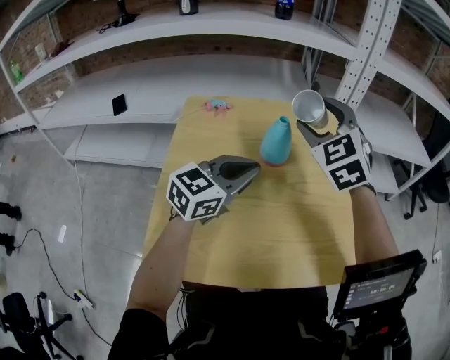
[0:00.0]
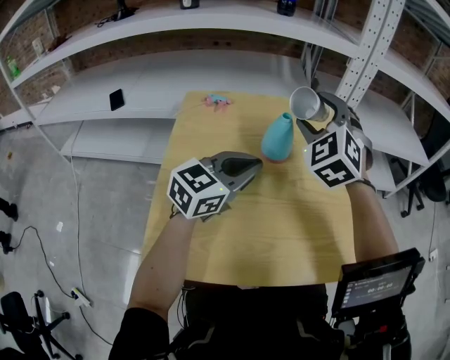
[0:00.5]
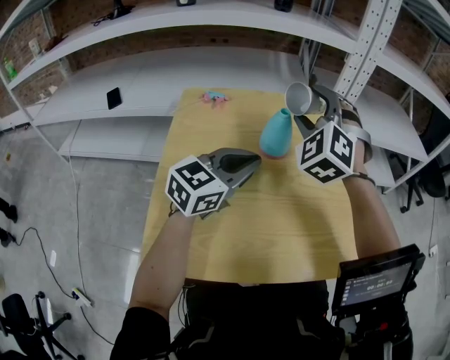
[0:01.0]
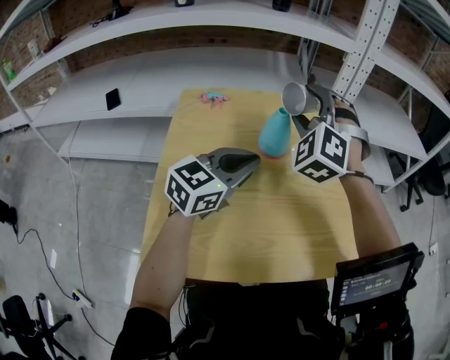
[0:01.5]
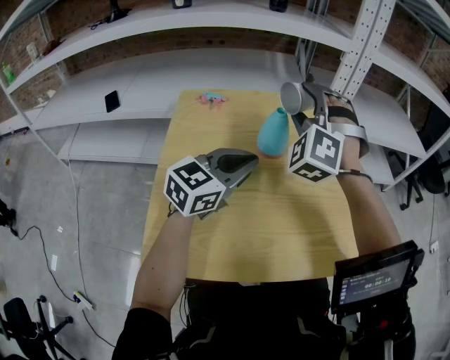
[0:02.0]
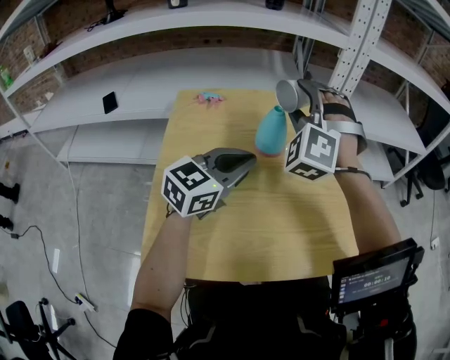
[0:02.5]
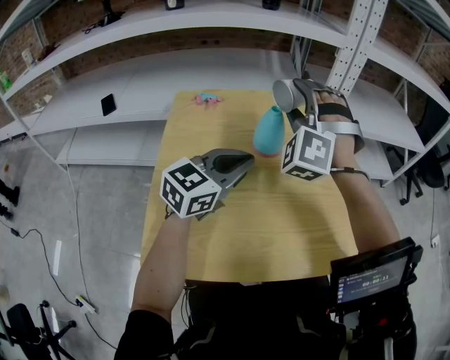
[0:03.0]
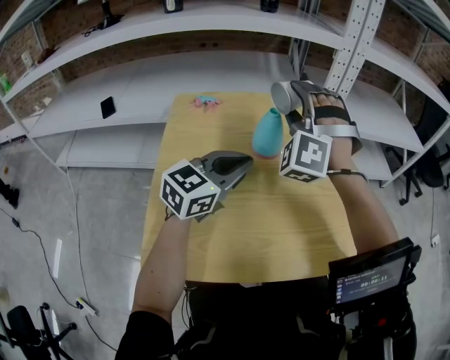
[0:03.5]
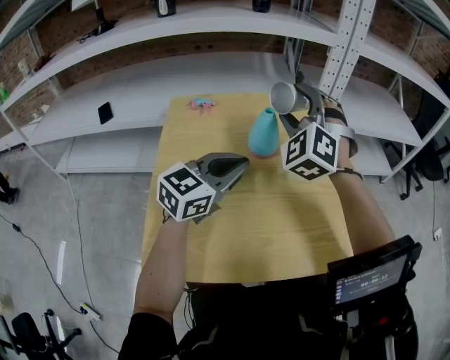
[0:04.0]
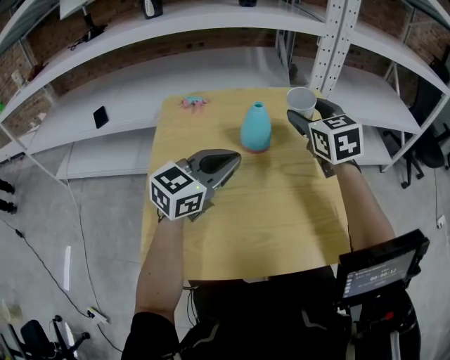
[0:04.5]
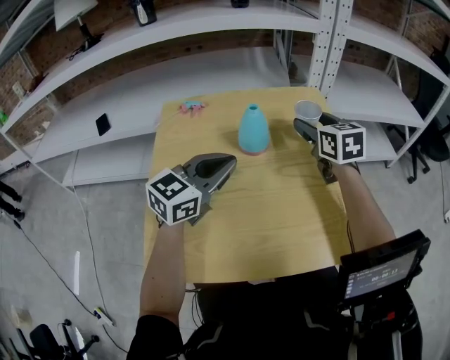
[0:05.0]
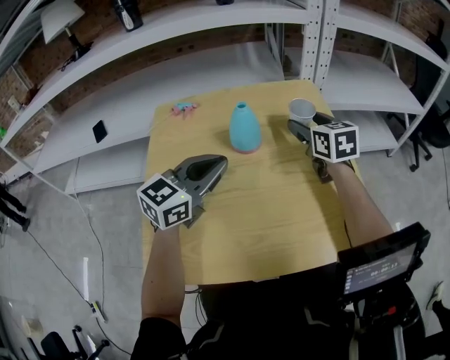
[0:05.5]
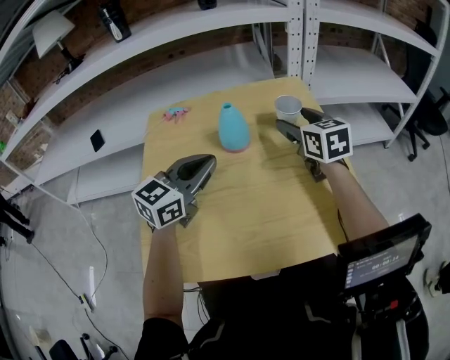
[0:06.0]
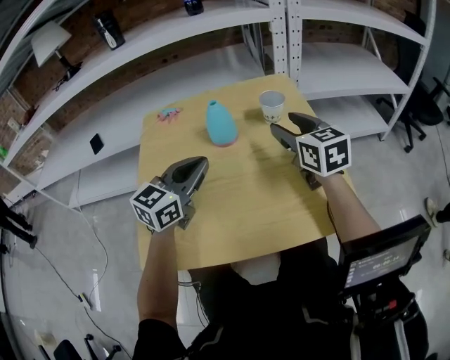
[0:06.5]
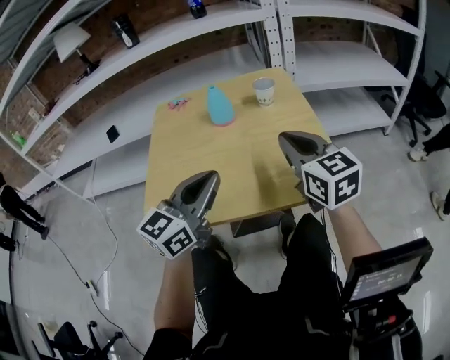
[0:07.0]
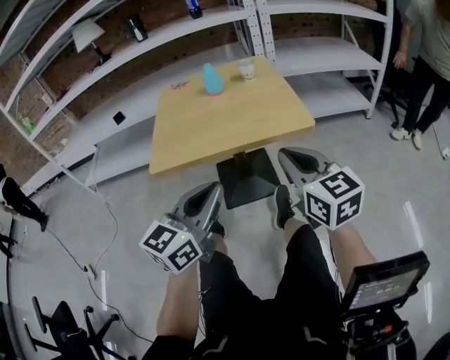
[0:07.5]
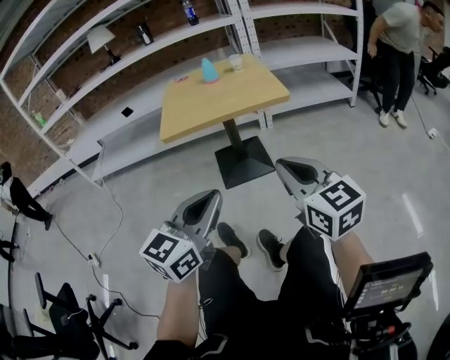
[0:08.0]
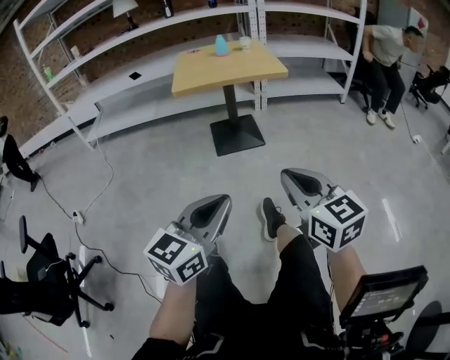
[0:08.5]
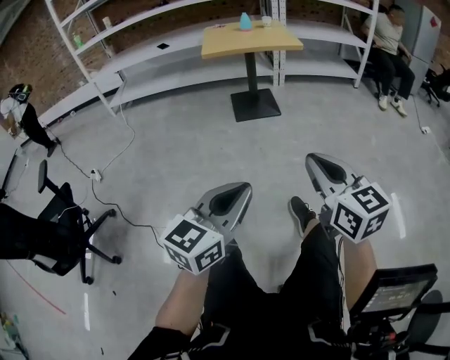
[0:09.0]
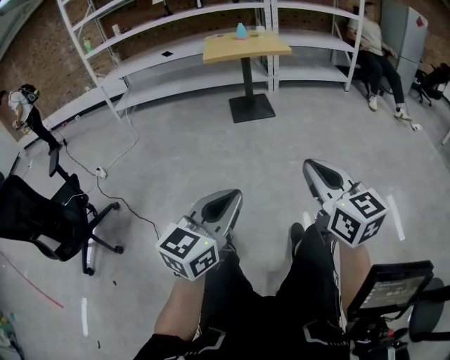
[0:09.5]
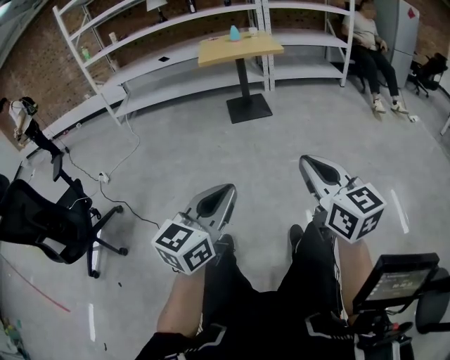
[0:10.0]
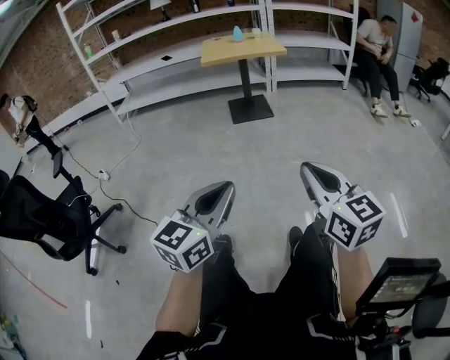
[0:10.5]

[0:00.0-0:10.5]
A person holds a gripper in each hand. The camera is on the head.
0:00.0 to 0:02.0: The right gripper rotates roughly 40 degrees.
0:02.0 to 0:04.0: There are only small adjustments of the grippers.
0:04.0 to 0:06.5: The right gripper goes approximately 15 cm to the right and downward, and rotates around the line of its fingers by about 70 degrees, clockwise from behind.
0:06.5 to 0:08.5: Both grippers are carried backward, some 90 cm. The right gripper closes.
0:08.5 to 0:10.5: The two grippers go approximately 40 cm backward.

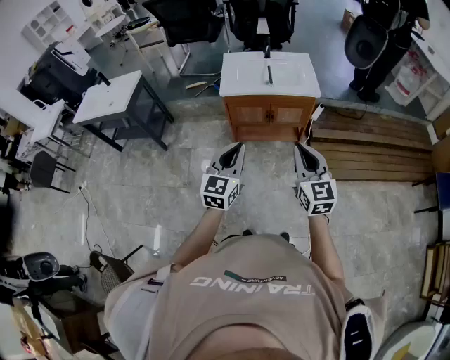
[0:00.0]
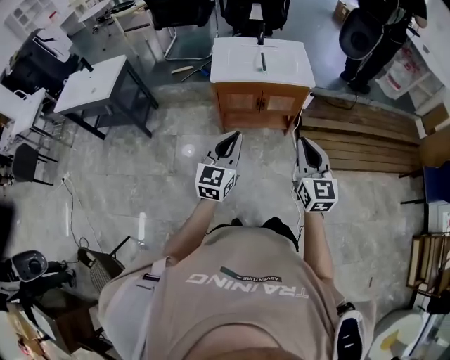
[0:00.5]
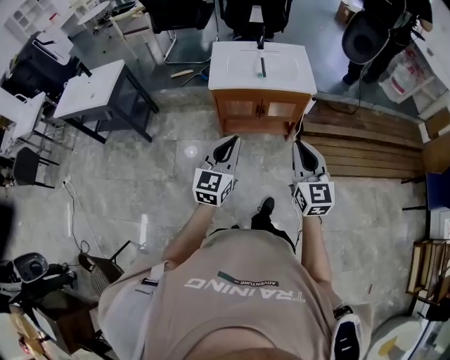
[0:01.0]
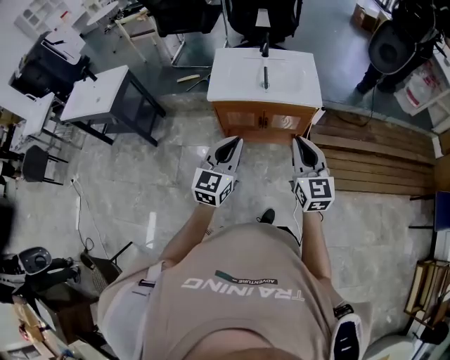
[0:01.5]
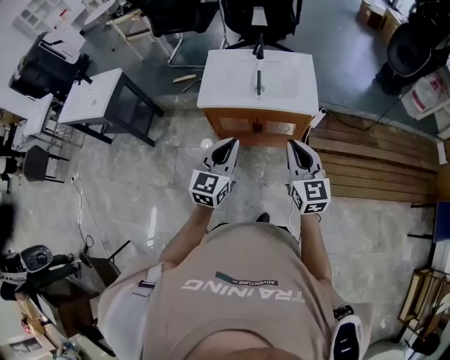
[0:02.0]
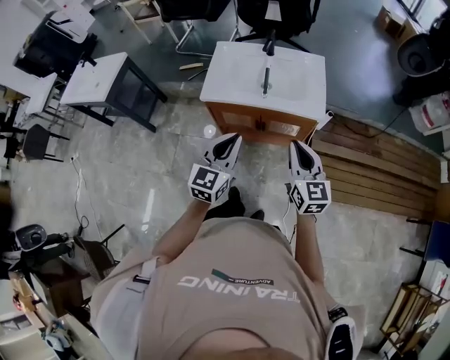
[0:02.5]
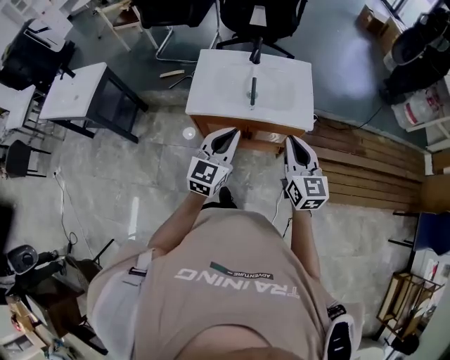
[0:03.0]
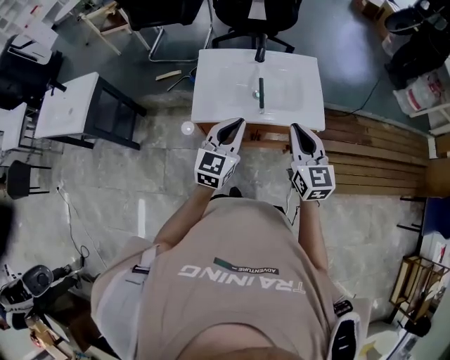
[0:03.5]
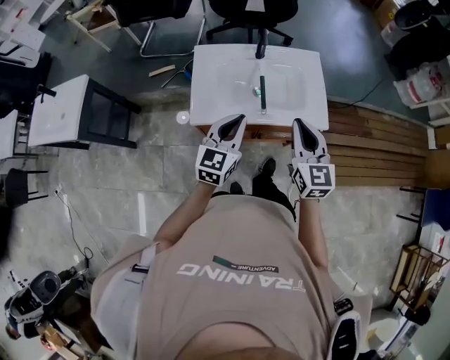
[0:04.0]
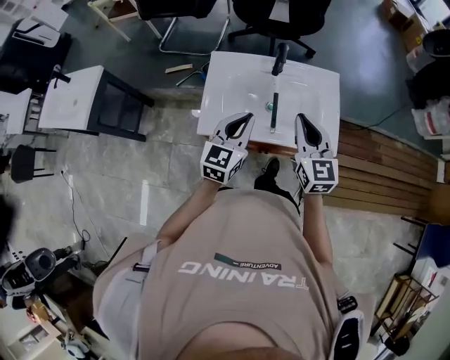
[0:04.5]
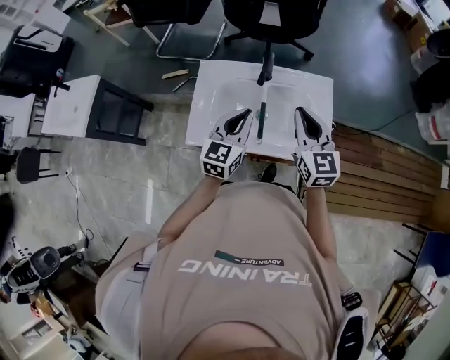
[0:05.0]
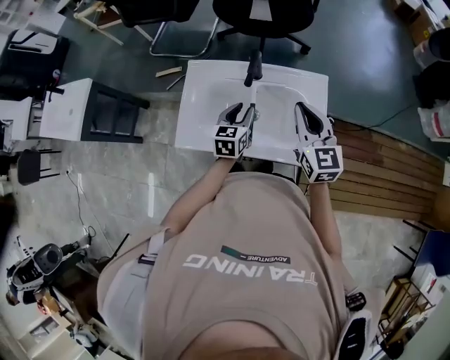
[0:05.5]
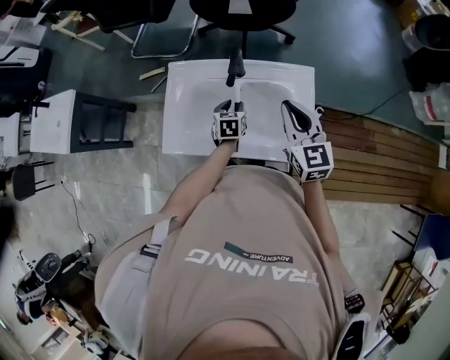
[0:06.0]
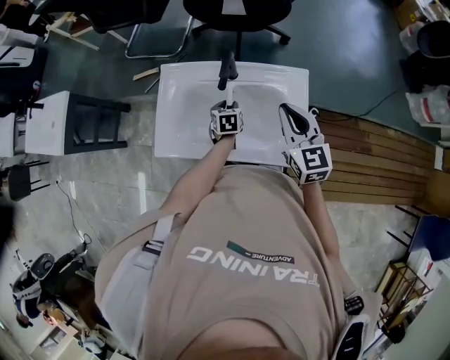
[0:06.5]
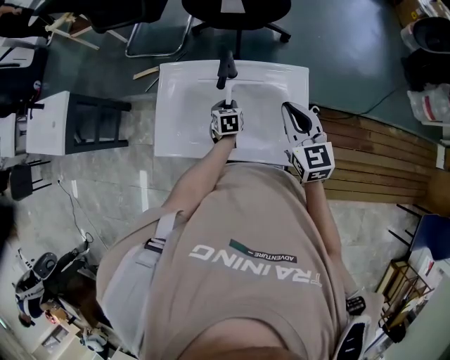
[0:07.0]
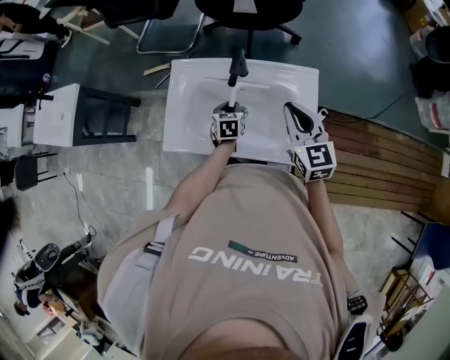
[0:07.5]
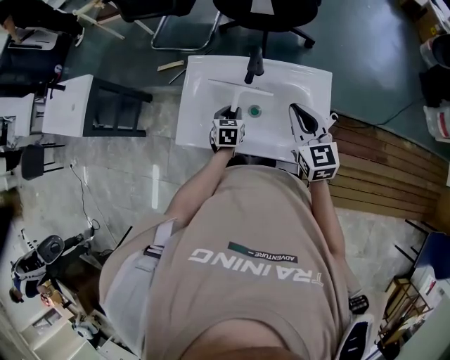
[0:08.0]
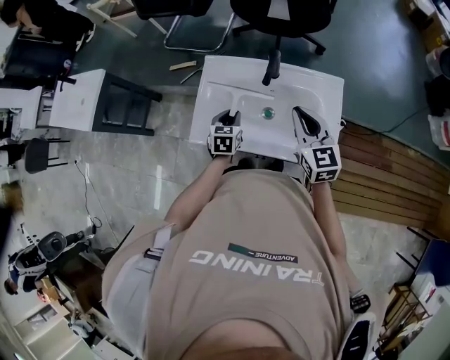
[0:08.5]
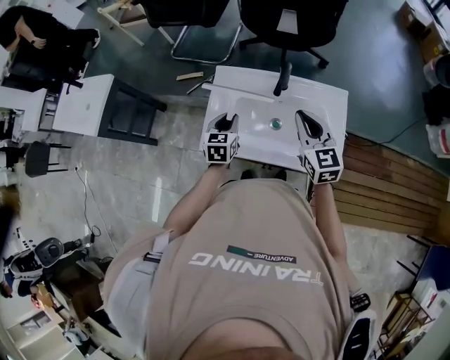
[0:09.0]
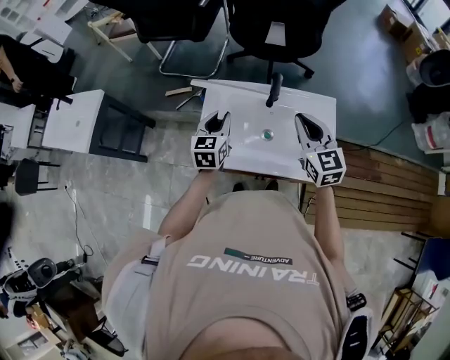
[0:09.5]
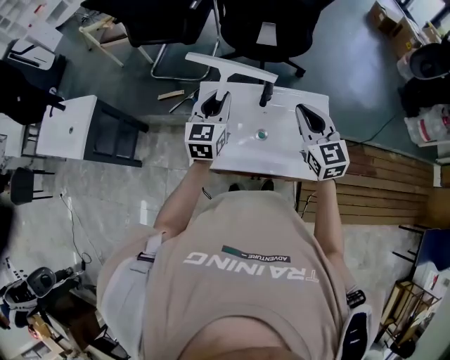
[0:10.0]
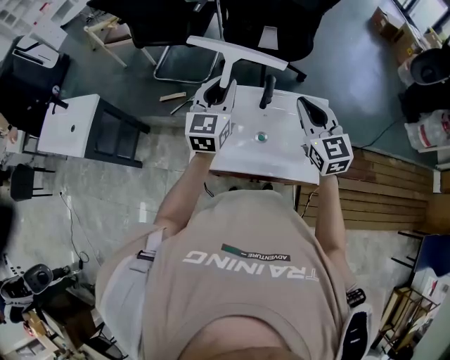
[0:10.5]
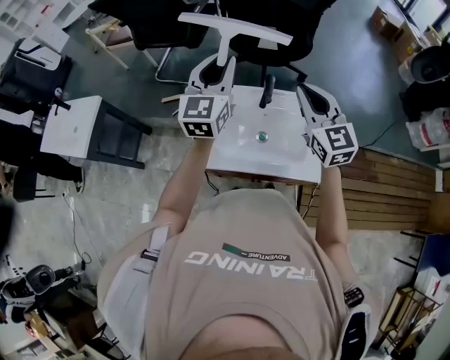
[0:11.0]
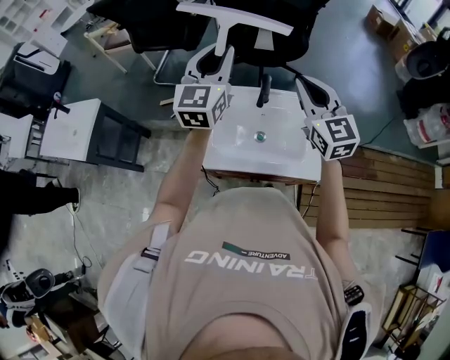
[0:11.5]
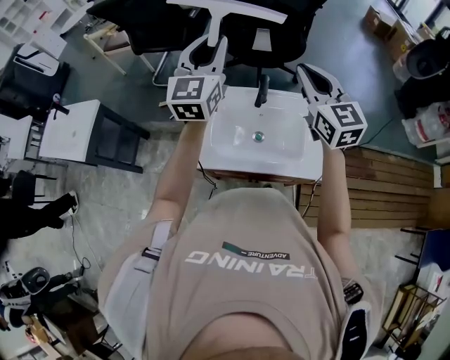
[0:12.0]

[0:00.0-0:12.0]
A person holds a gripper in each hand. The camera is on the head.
0:00.0 to 0:02.0: Both grippers travel together forward, about 25 cm.
0:02.0 to 0:04.0: Both grippers travel together forward, approximately 25 cm.
0:04.0 to 0:06.0: The left gripper is displaced forward and downward by some 35 cm, angles its fingers downward, by approximately 30 degrees, and opens. Meanwhile the right gripper is displaced forward and to the right by some 25 cm.
0:06.0 to 0:08.0: The left gripper shifts some 5 cm to the left.
0:08.0 to 0:10.0: The left gripper heads upward, covering roughly 30 cm, and tips its fingers upward by some 40 degrees. Meanwhile the right gripper goes about 10 cm upward and to the left.
0:10.0 to 0:12.0: The left gripper heads upward, covering approximately 20 cm, while the right gripper travels upward by about 15 cm.

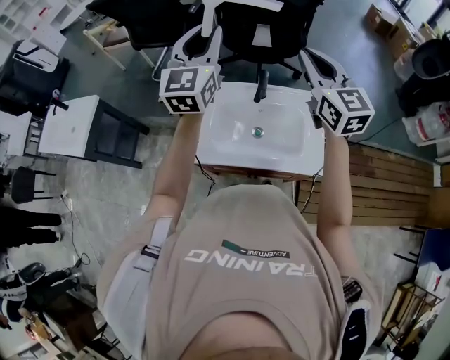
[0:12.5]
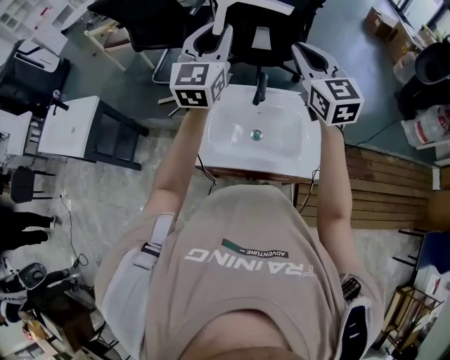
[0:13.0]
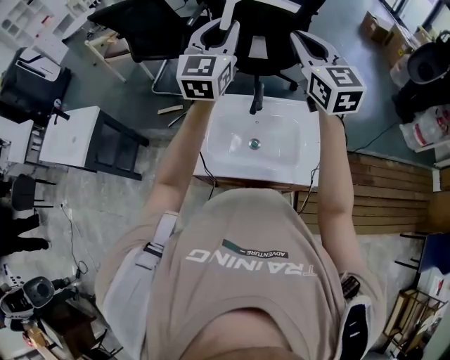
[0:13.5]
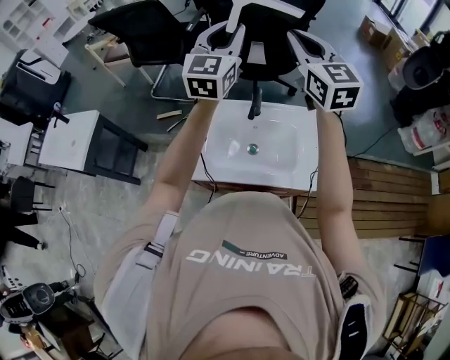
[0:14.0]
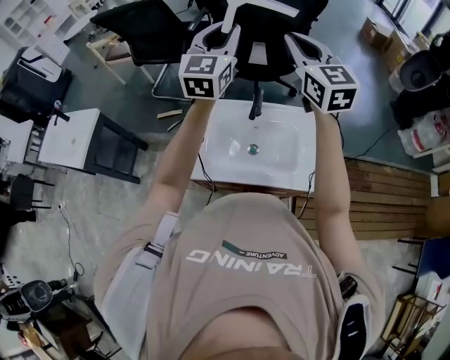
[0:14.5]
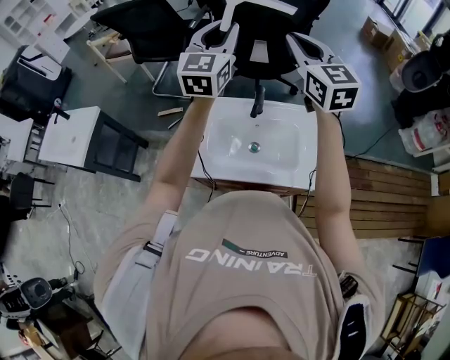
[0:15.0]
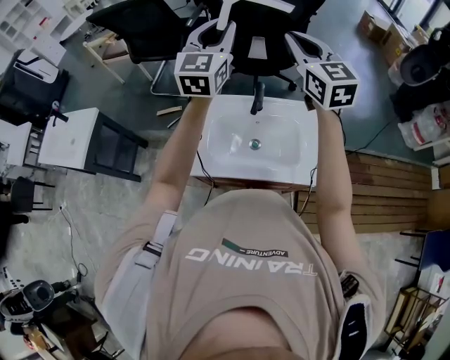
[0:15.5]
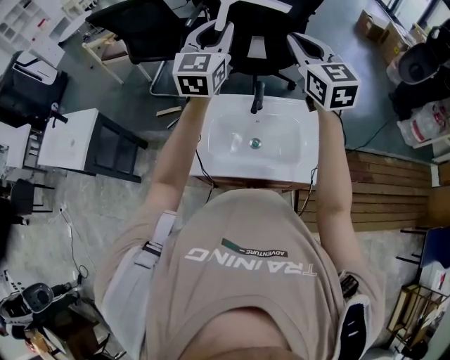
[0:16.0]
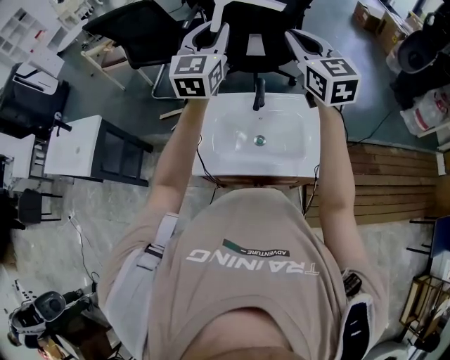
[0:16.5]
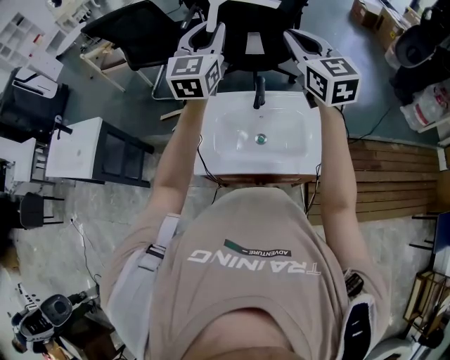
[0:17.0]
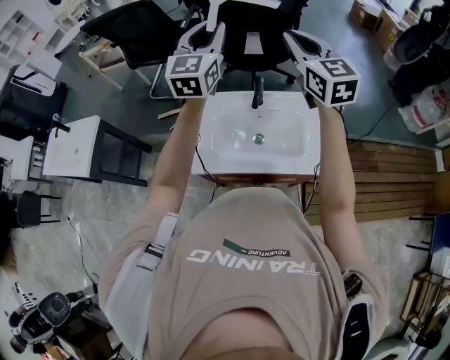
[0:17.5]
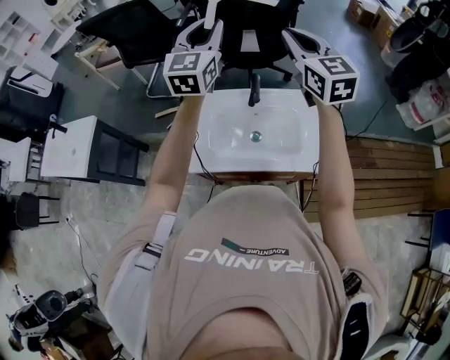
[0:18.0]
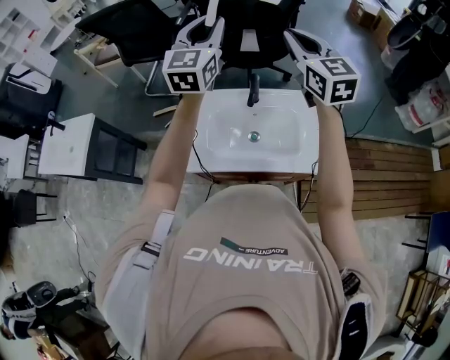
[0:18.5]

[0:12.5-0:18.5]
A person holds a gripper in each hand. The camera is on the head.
0:12.5 to 0:14.5: The left gripper travels to the right by roughly 5 cm. The right gripper is displaced upward and forward by some 10 cm.
0:14.5 to 0:18.5: The grippers move only a little.
